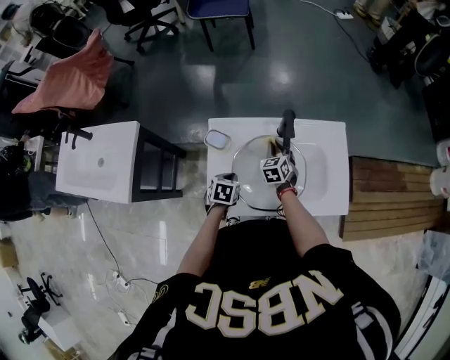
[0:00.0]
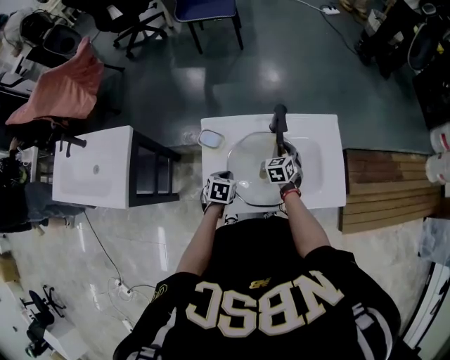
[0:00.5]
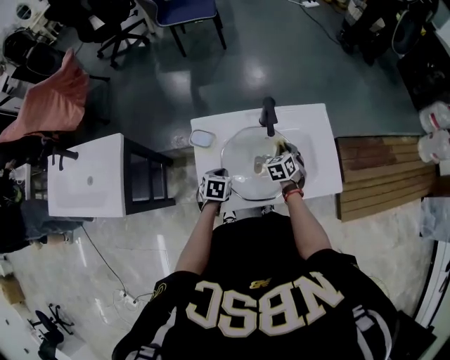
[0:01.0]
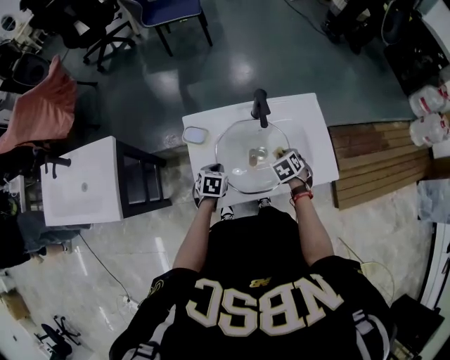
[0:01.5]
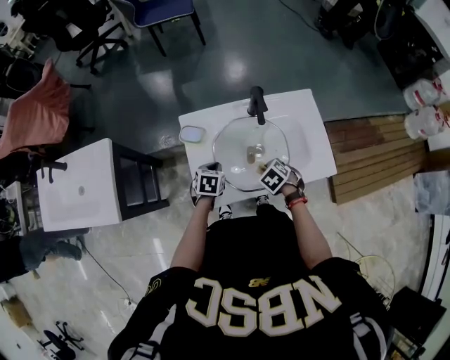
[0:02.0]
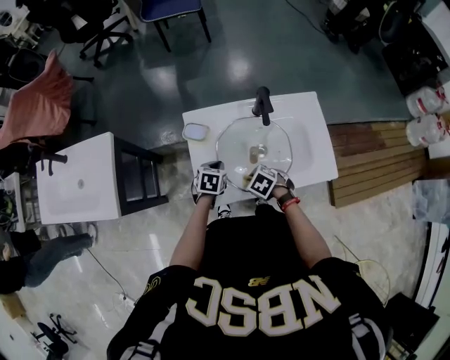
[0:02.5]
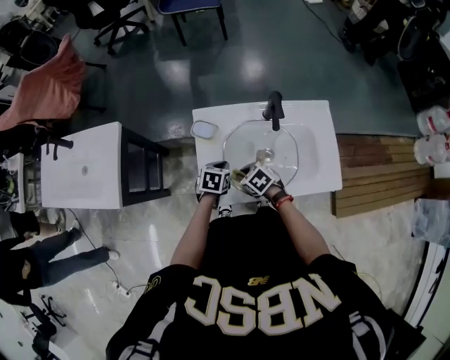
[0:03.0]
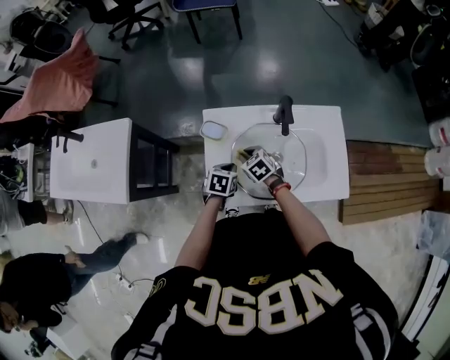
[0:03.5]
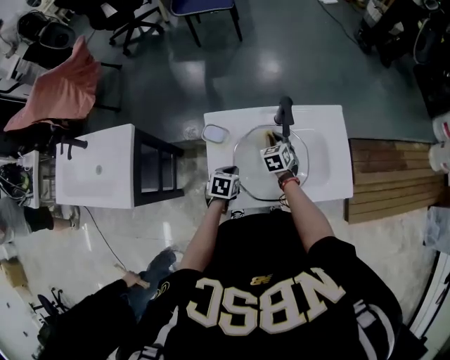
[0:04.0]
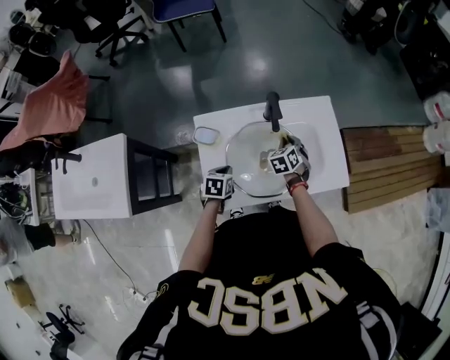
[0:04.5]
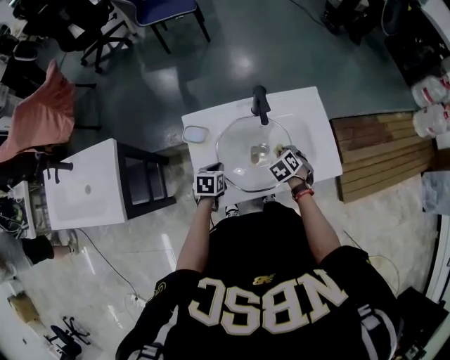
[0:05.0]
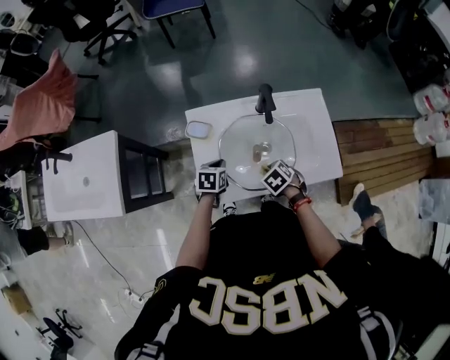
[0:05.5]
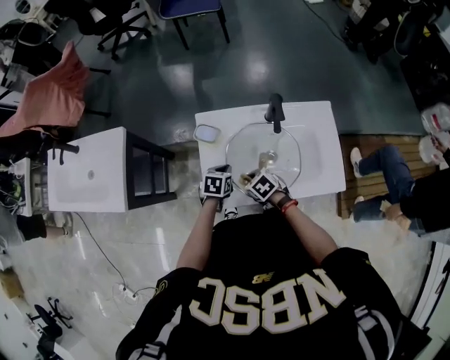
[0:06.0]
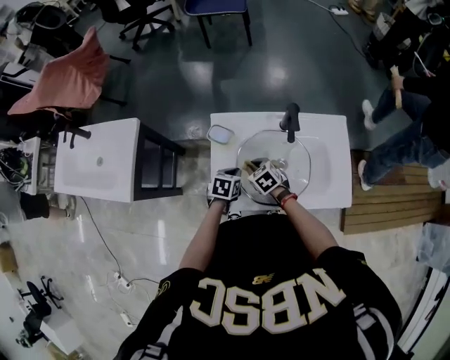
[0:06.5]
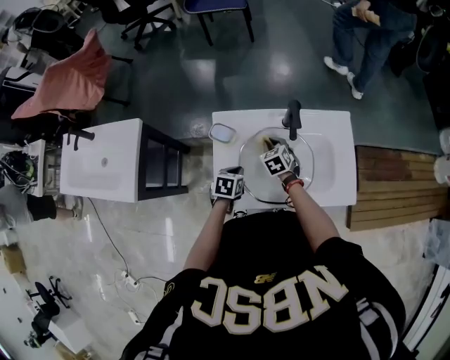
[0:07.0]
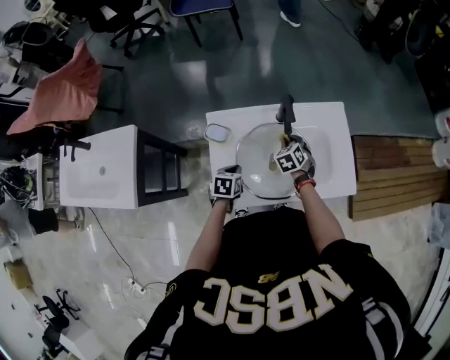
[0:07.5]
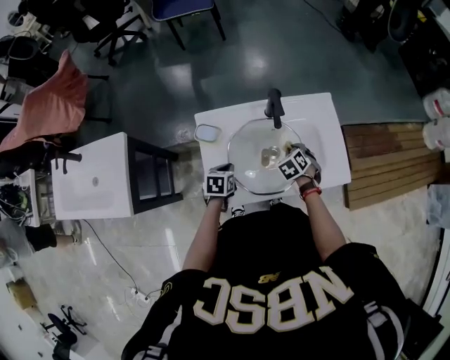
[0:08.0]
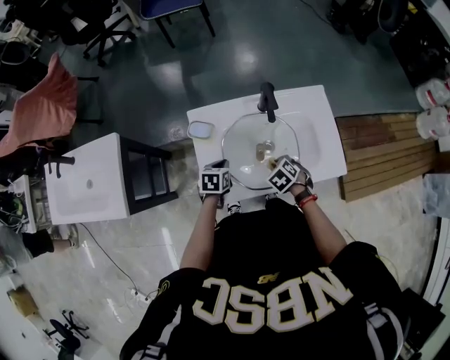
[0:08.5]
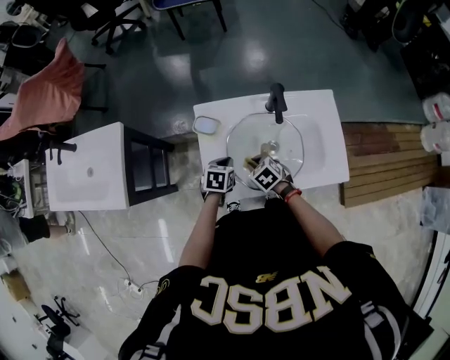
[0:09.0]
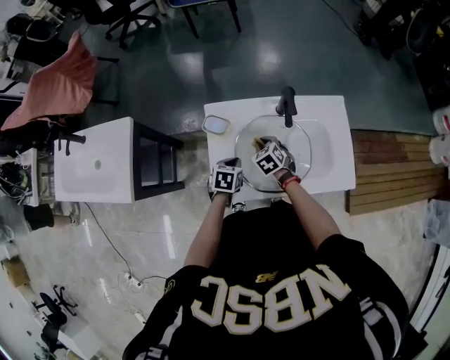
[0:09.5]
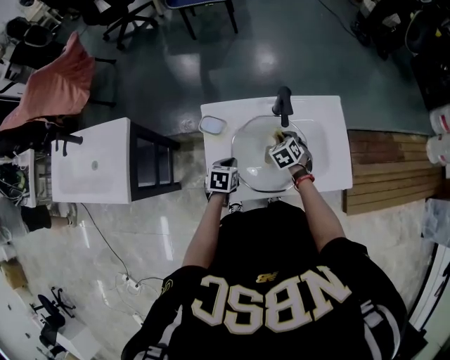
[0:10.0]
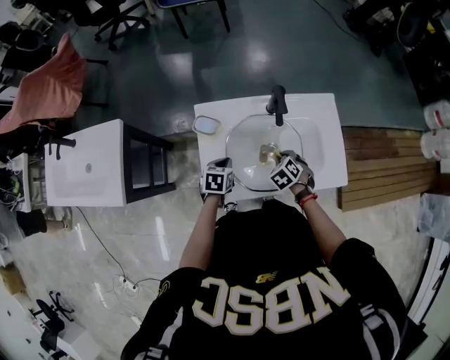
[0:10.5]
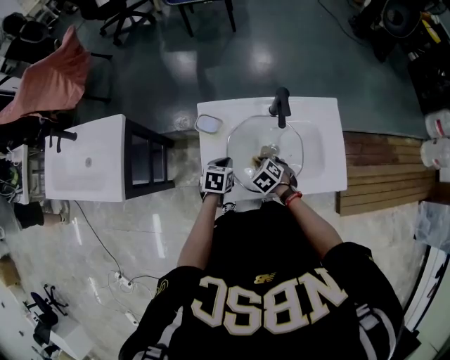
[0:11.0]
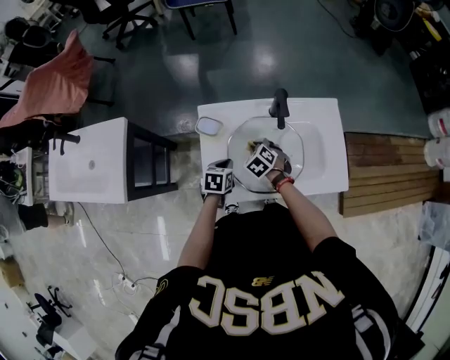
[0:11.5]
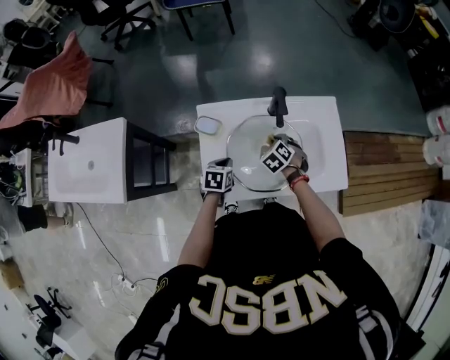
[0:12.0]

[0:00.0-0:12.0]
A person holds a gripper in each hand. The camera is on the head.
0:00.0 to 0:02.0: The right gripper moves about 20 cm, and tilts its fingers about 30 degrees downward.
0:02.0 to 0:04.0: The right gripper moves some 20 cm, and rotates about 30 degrees.
0:04.0 to 0:06.0: The right gripper shifts by about 20 cm, and swivels some 40 degrees.
0:06.0 to 0:08.0: The right gripper shifts by some 20 cm, and swivels about 40 degrees.
0:10.0 to 0:12.0: The right gripper goes to the left and returns, about 10 cm each way.

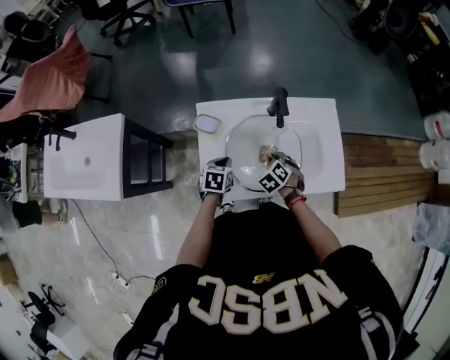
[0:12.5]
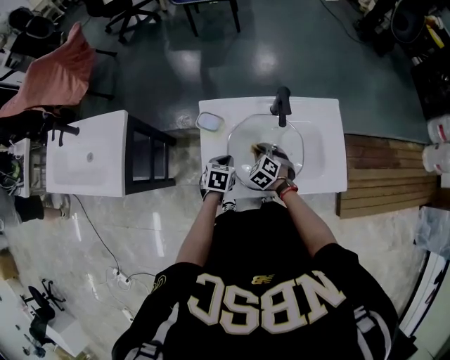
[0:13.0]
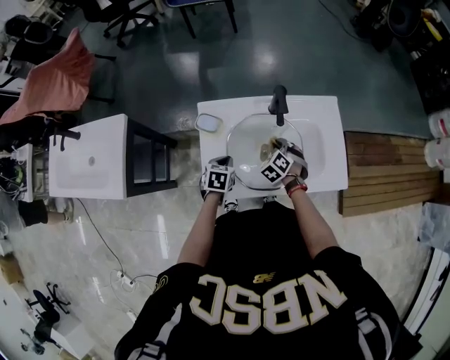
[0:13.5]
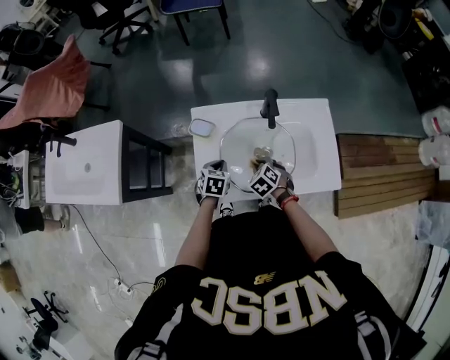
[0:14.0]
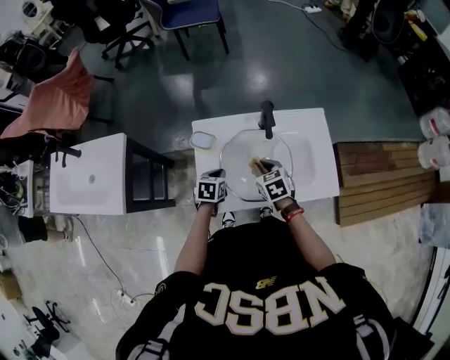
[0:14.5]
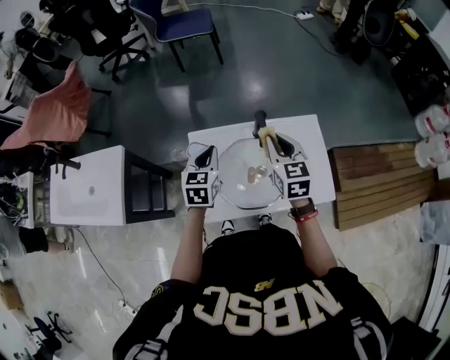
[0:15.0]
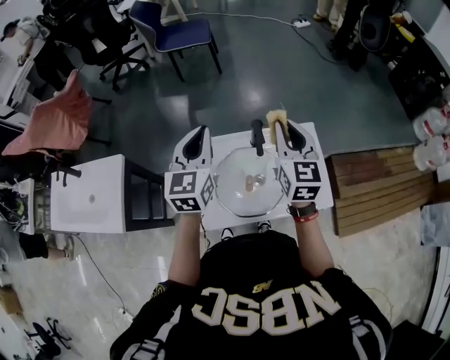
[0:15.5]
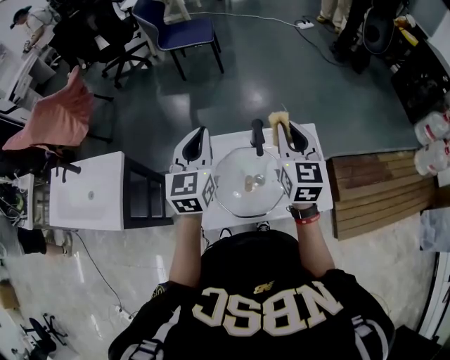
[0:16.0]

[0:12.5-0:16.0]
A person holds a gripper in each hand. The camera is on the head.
0:12.5 to 0:14.5: The right gripper goes some 10 cm upward, and swivels approximately 30 degrees.
0:14.5 to 0:16.0: The grippers both shift upward by approximately 30 cm. The right gripper angles its fingers upward, by about 40 degrees, while the left gripper tips its fingers upward by roughly 40 degrees.

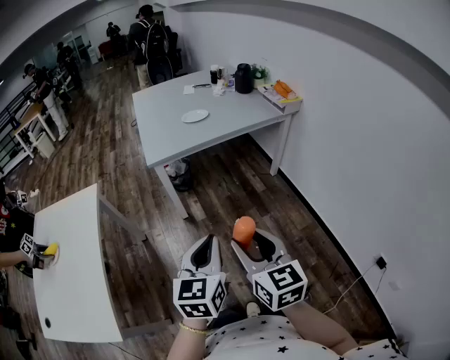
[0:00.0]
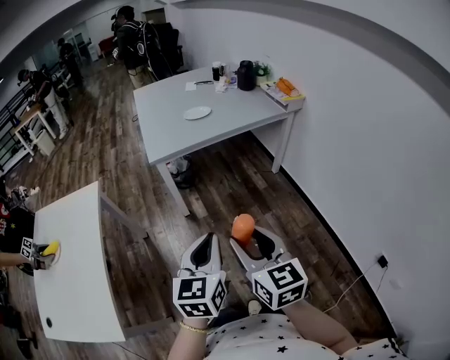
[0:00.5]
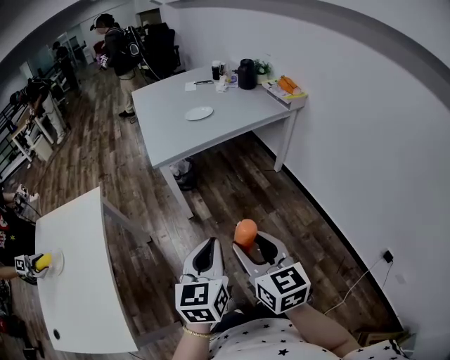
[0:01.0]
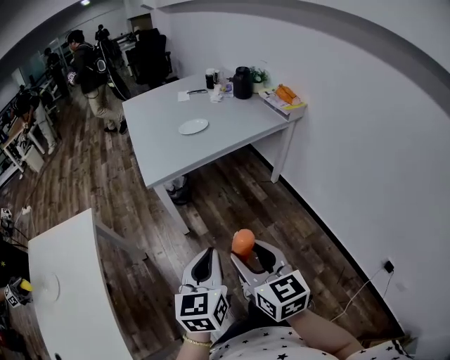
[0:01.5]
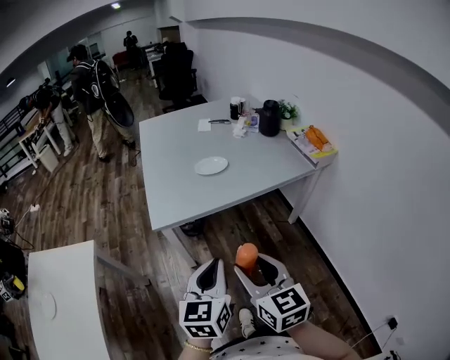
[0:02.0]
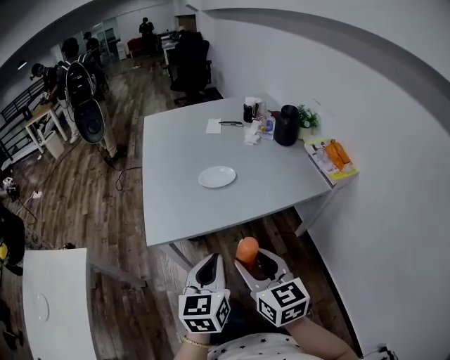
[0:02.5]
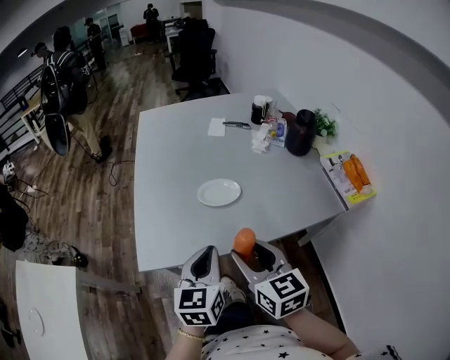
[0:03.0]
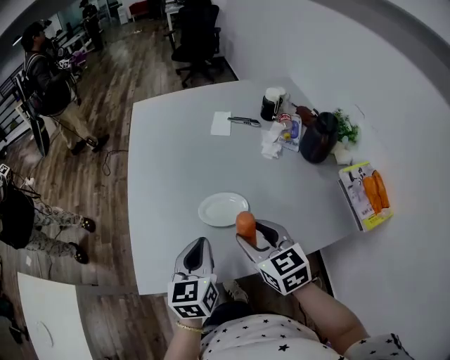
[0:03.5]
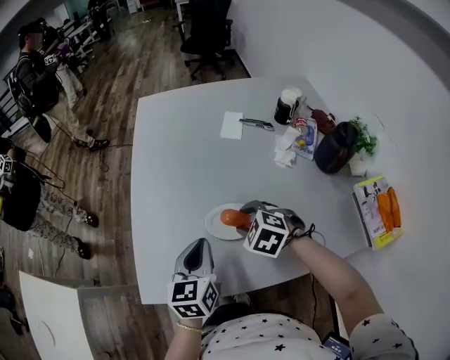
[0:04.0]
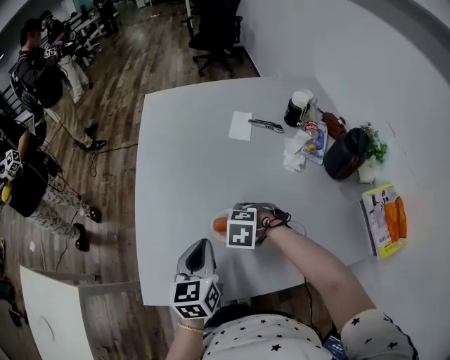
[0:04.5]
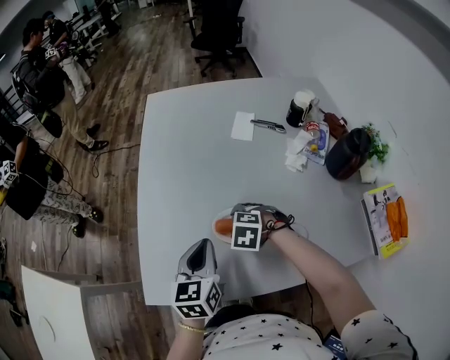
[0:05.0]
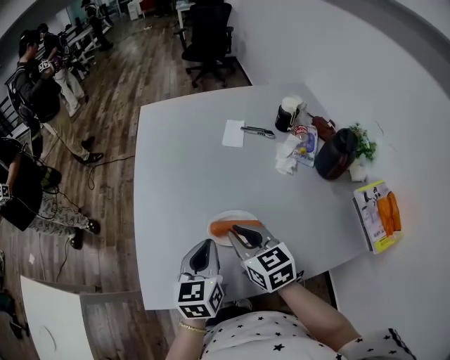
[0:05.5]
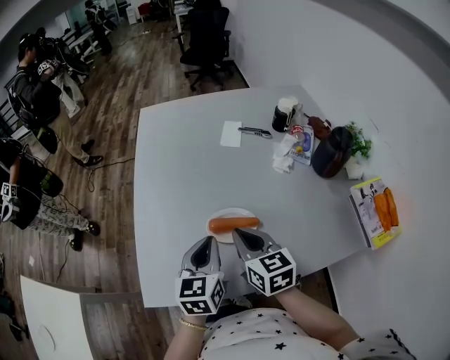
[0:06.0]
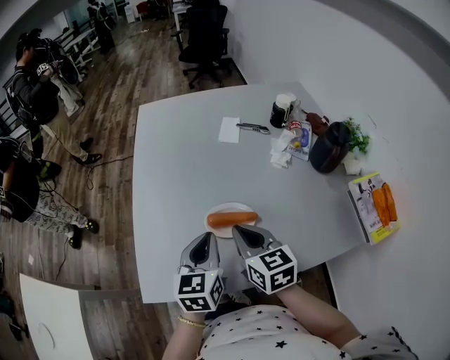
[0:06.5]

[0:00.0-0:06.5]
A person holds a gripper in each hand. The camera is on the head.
0:00.0 to 0:02.0: The grippers both shift forward by roughly 30 cm.
0:02.0 to 0:04.5: The two grippers travel together, about 50 cm. The right gripper tilts its fingers roughly 60 degrees downward, while the left gripper changes its angle by about 20 degrees.
0:04.5 to 0:06.5: The right gripper goes about 15 cm upward, tilts its fingers approximately 50 degrees upward, and closes its fingers.

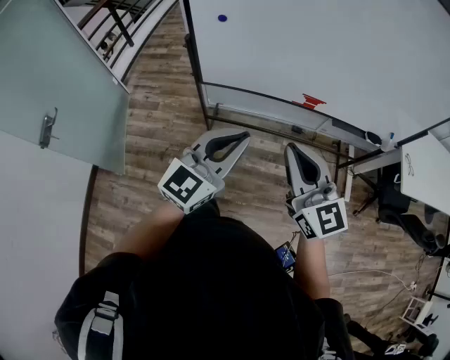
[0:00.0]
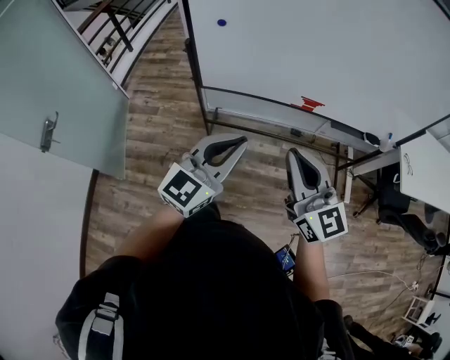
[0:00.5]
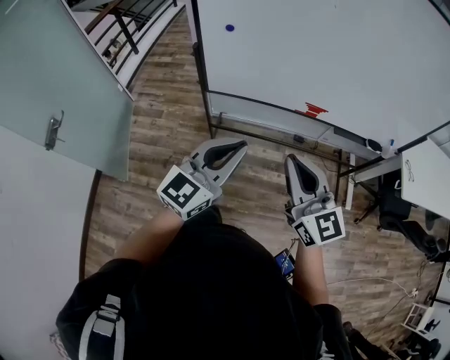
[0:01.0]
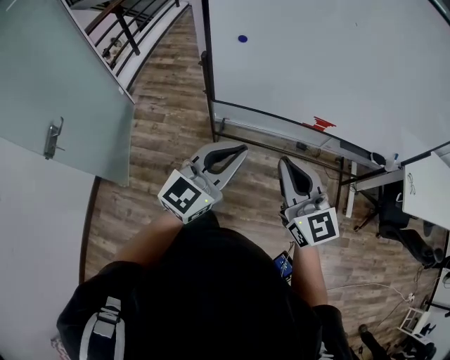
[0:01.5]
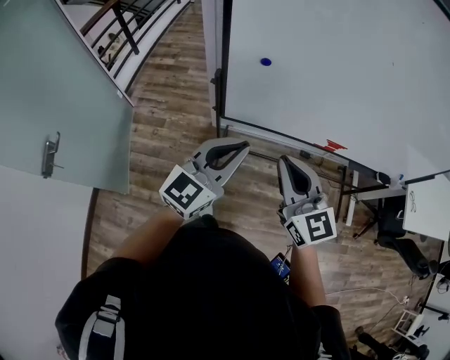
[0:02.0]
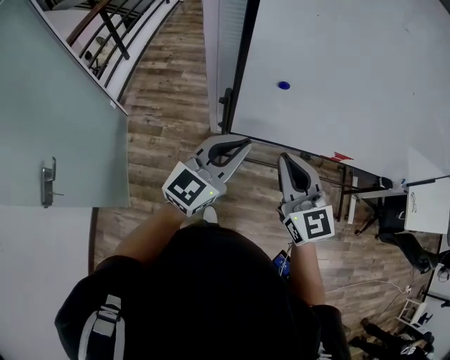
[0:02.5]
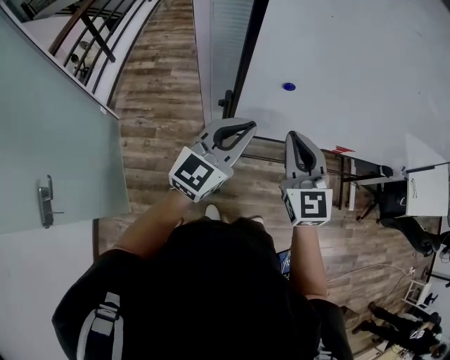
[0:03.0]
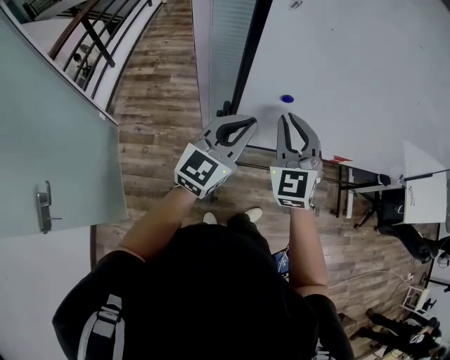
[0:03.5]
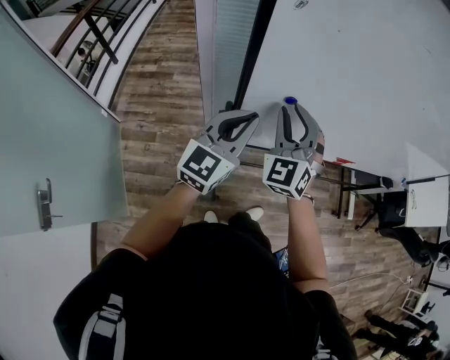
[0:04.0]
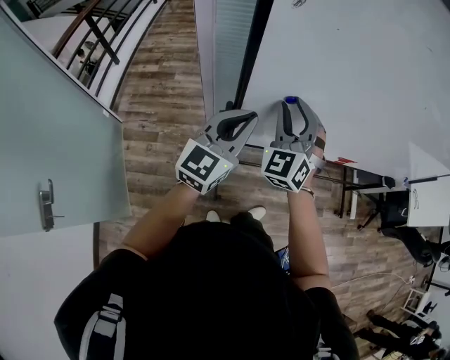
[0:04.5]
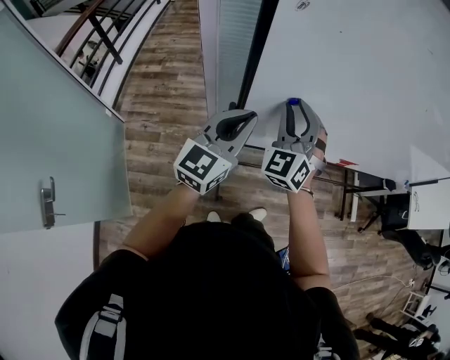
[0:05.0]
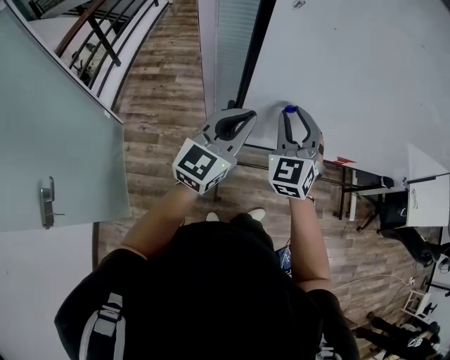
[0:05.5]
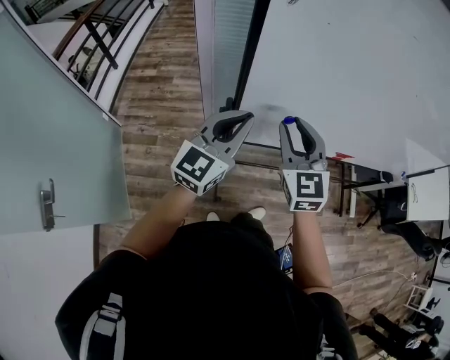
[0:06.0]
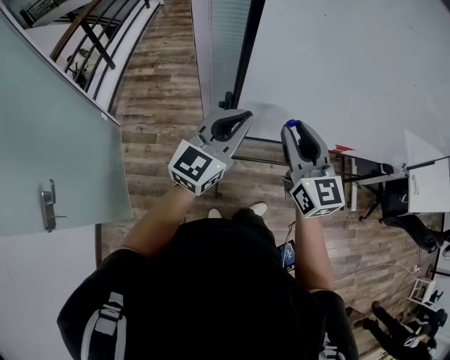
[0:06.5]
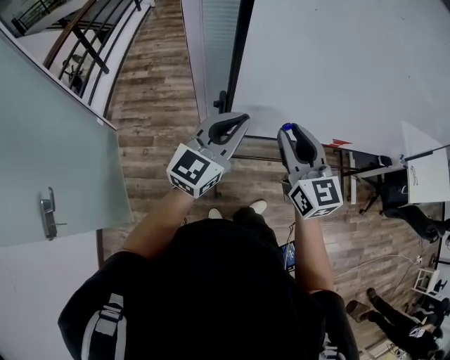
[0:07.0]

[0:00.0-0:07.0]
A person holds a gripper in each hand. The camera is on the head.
0:00.0 to 0:02.0: The grippers both shift to the left and forward by approximately 20 cm.
0:02.0 to 0:03.5: The two grippers go roughly 25 cm forward and to the left. The right gripper turns by about 40 degrees.
0:03.5 to 0:05.0: The right gripper changes place by about 5 cm.
0:05.0 to 0:07.0: The left gripper heads backward, covering approximately 5 cm; the right gripper heads backward, covering some 10 cm, and rolls clockwise, seen from behind, by roughly 50 degrees.
